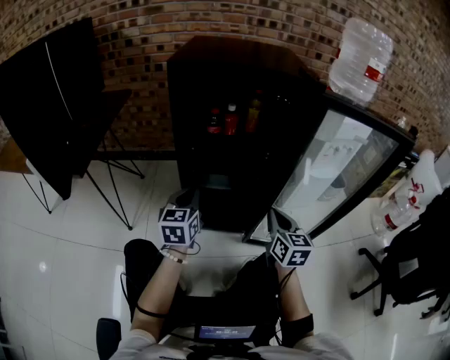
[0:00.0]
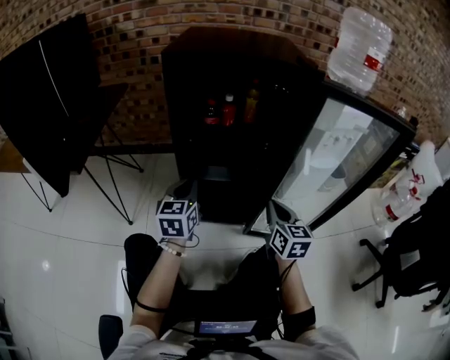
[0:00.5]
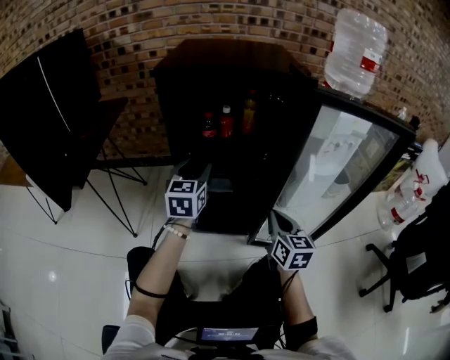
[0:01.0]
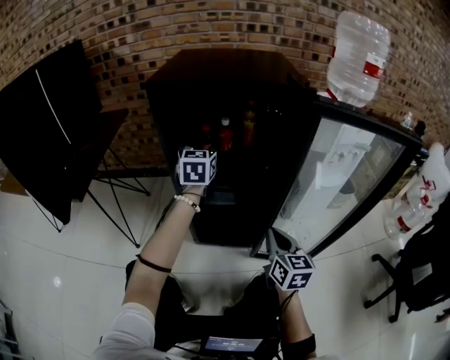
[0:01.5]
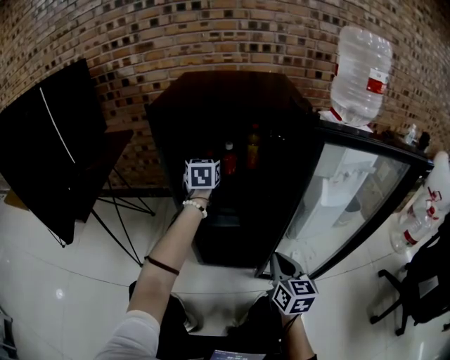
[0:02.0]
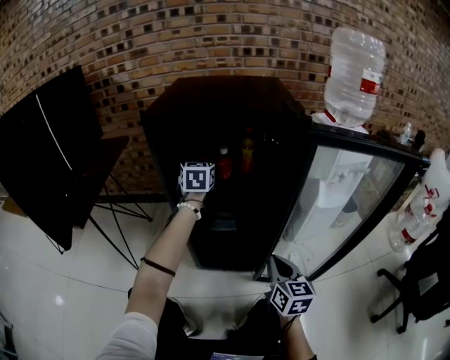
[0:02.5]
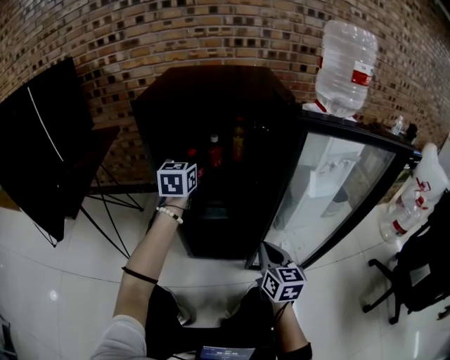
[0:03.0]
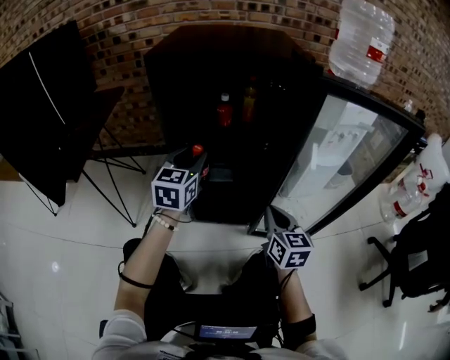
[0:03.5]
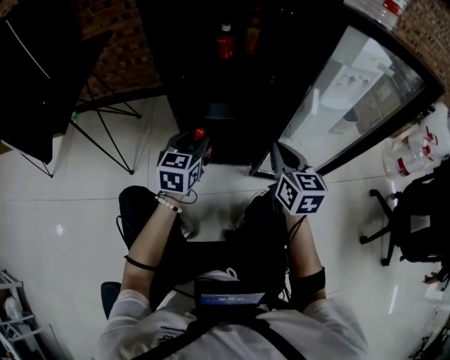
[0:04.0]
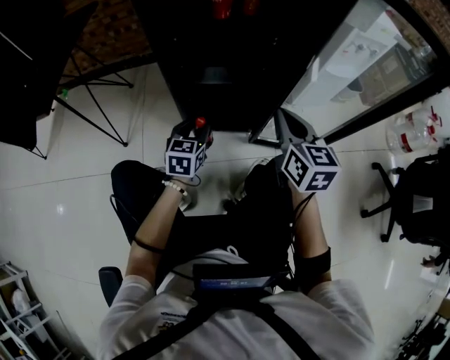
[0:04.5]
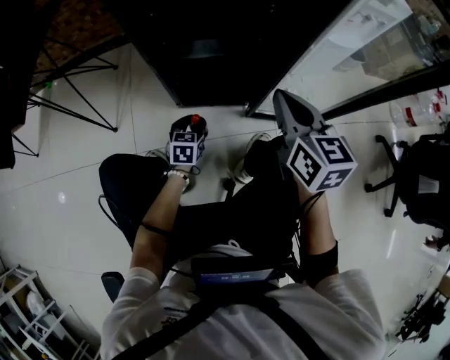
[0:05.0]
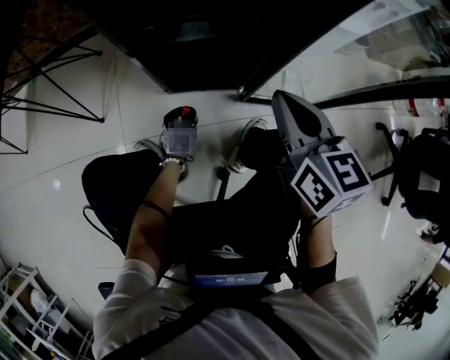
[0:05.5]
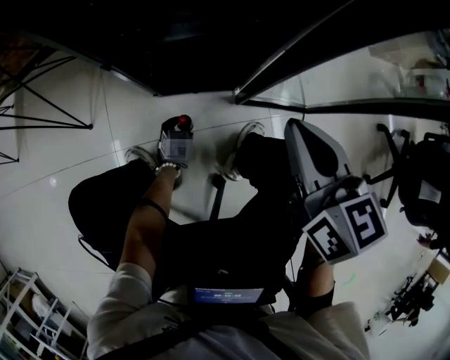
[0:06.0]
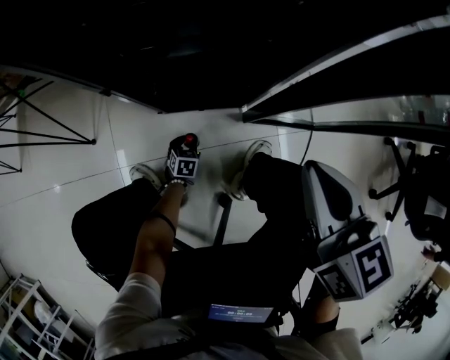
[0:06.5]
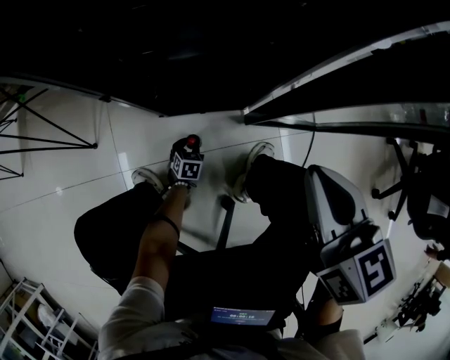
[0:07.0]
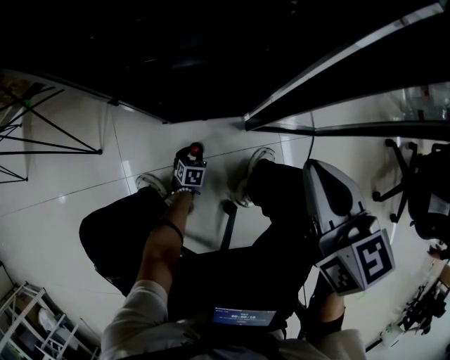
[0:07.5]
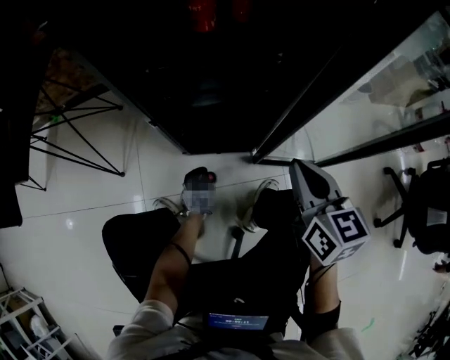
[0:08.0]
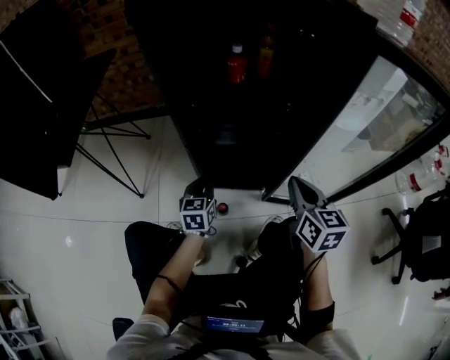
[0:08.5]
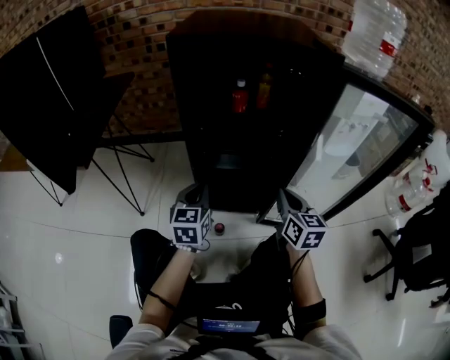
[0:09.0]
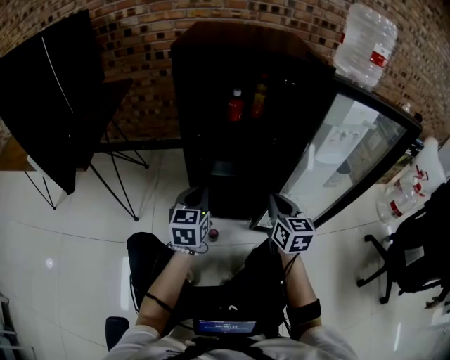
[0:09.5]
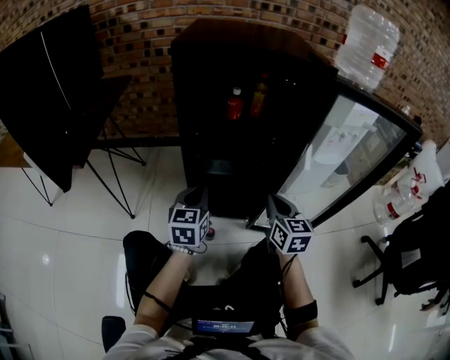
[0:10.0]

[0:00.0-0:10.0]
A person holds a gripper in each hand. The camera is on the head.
0:00.0 to 0:02.0: The left gripper goes roughly 30 cm forward, and opens its fingers.
0:02.0 to 0:04.0: The left gripper heads backward and downward, covering roughly 30 cm, and closes its fingers.
0:04.0 to 0:06.0: The left gripper moves downward, roughly 50 cm, and points its fingers about 40 degrees further downward, while the right gripper ends up approximately 5 cm from where it was.
0:06.0 to 0:08.0: The left gripper goes about 10 cm upward, and closes.
0:08.0 to 0:10.0: The right gripper shifts by approximately 5 cm. The left gripper shifts roughly 40 cm upward, and points its fingers roughly 30 degrees further upward.

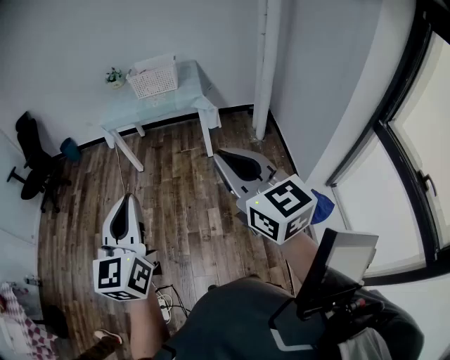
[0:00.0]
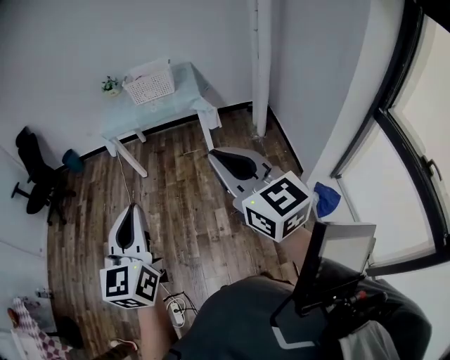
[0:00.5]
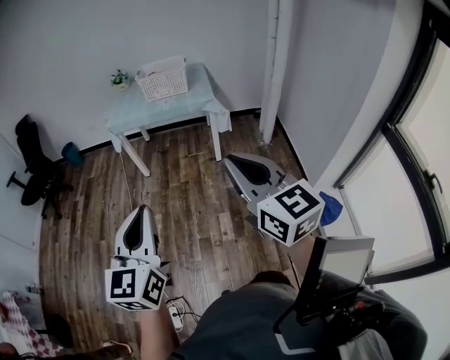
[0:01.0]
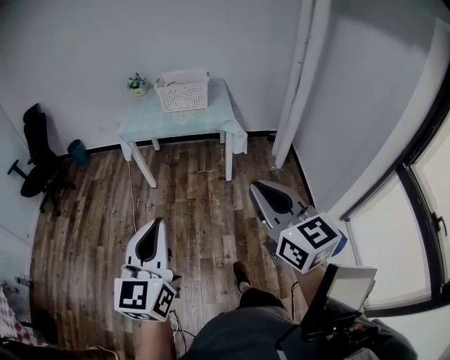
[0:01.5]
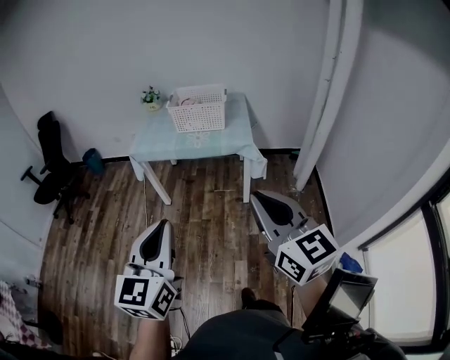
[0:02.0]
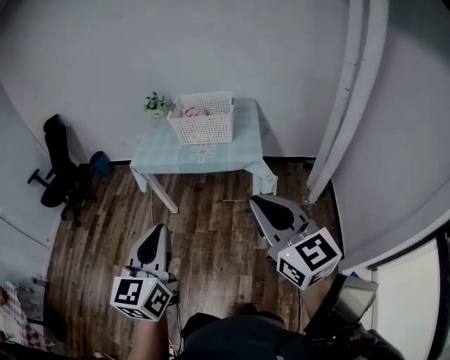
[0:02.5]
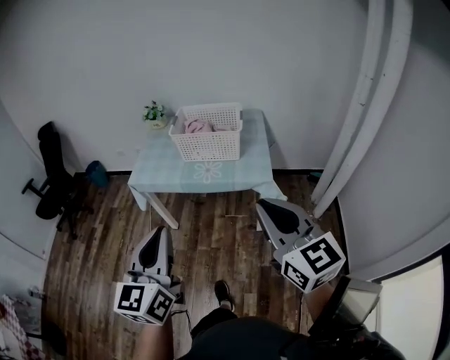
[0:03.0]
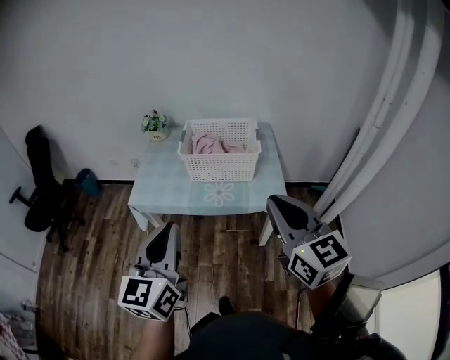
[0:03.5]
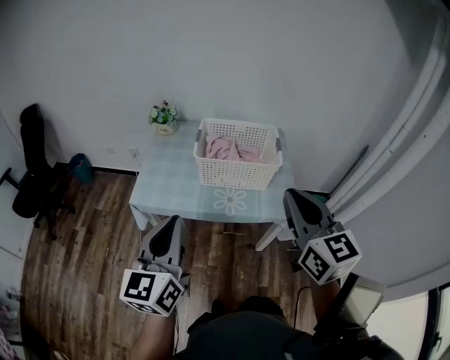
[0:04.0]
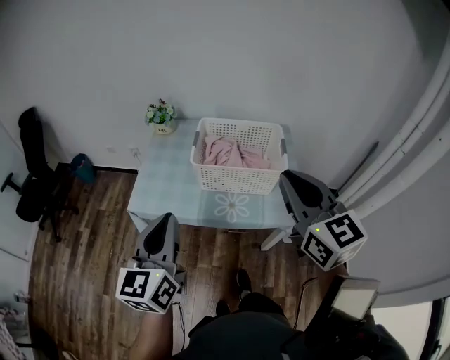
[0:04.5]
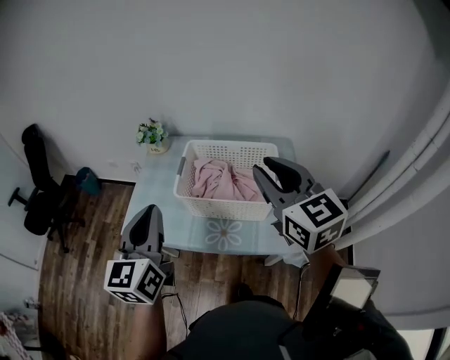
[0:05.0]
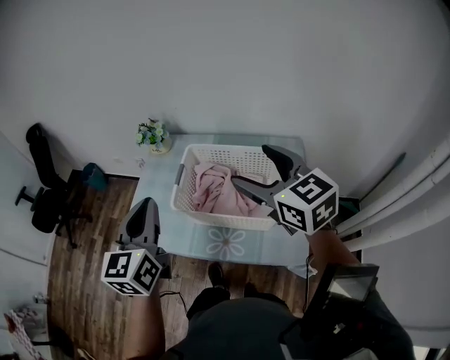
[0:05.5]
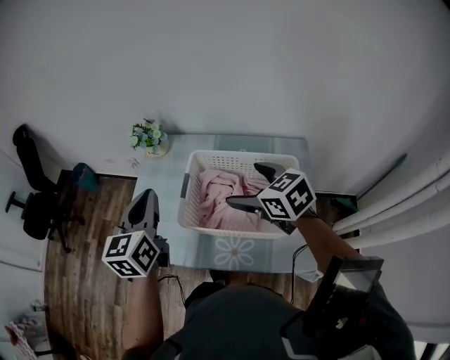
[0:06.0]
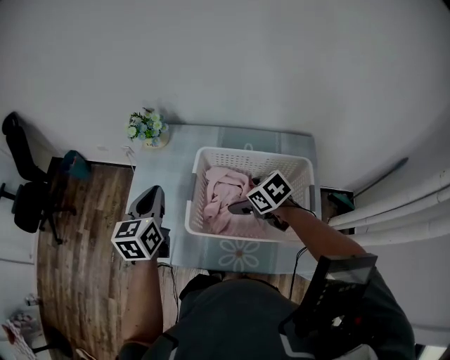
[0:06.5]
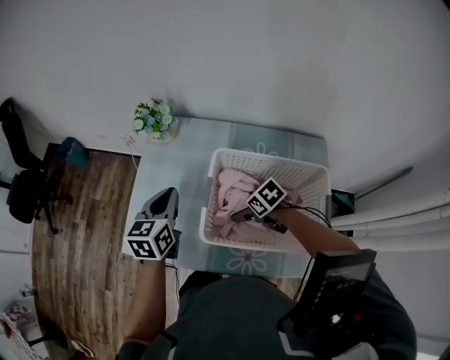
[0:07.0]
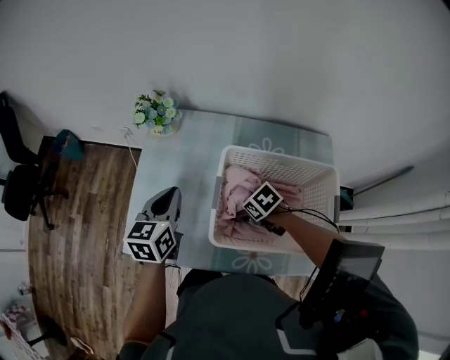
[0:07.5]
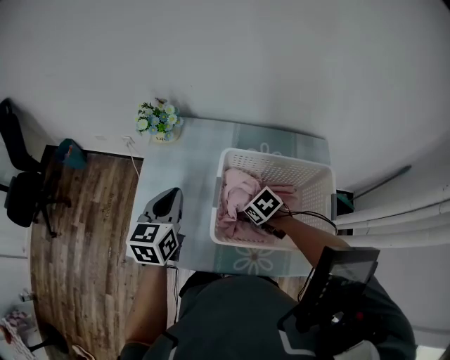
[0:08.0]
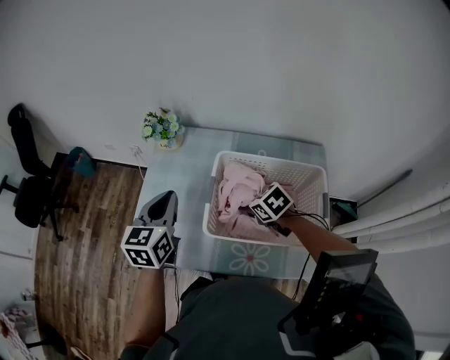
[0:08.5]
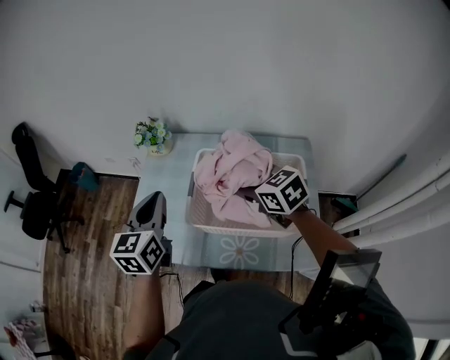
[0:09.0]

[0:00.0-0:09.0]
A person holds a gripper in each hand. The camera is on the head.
0:00.0 to 0:02.0: The grippers both shift forward by about 25 cm.
0:02.0 to 0:04.5: Both grippers are carried forward, about 60 cm.
0:04.5 to 0:07.0: The right gripper moves downward, some 40 cm, tips its fingers downward by approximately 60 degrees, and opens its fingers. Meanwhile the left gripper moves approximately 40 cm, and changes its angle by about 20 degrees.
0:07.0 to 0:09.0: The right gripper goes roughly 25 cm upward, changes its angle by some 40 degrees, and closes up. Meanwhile the left gripper goes approximately 15 cm upward and backward.

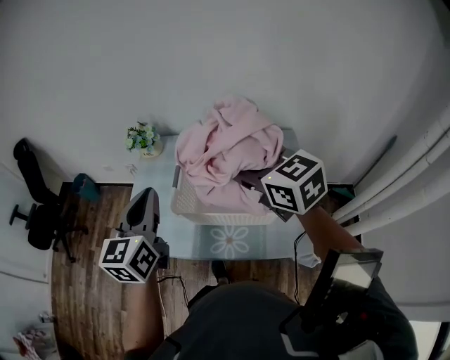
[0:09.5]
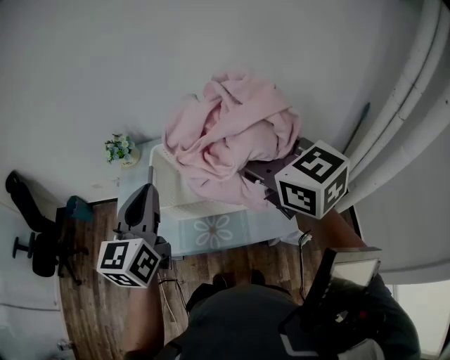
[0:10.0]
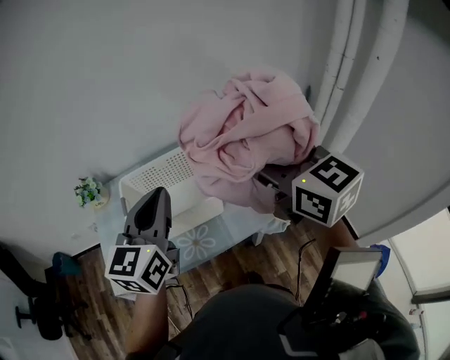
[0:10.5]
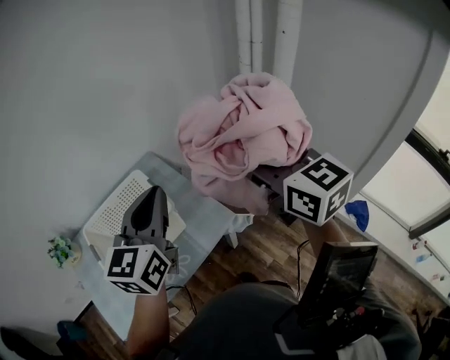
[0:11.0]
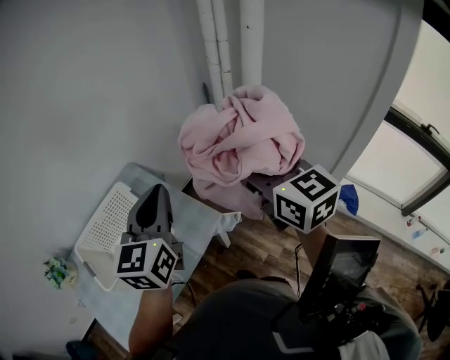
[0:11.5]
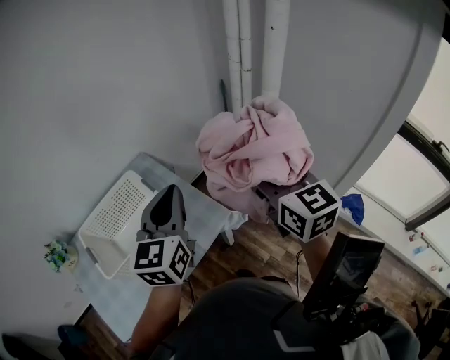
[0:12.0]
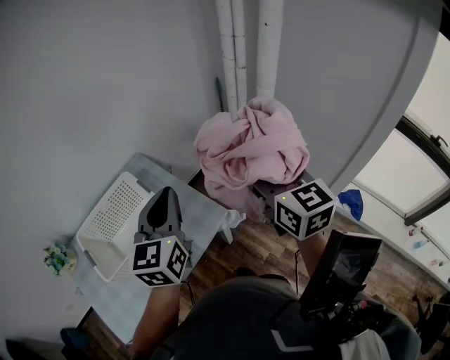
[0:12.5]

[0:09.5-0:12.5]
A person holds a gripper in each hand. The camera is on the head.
0:09.5 to 0:11.0: The left gripper changes place by roughly 35 cm, and rotates roughly 50 degrees; the right gripper shifts by roughly 40 cm, and turns by roughly 60 degrees.
0:11.0 to 0:12.5: The left gripper moves roughly 5 cm, while the right gripper moves downward, about 5 cm.

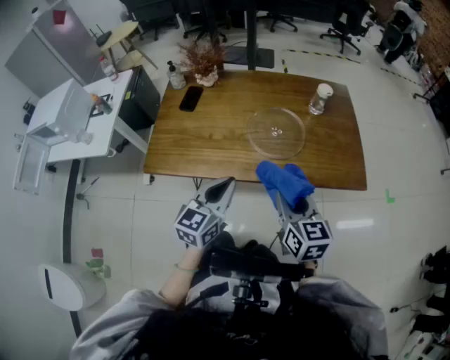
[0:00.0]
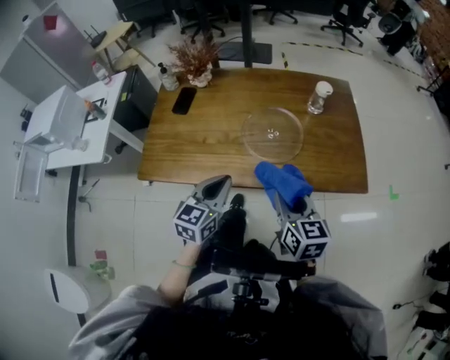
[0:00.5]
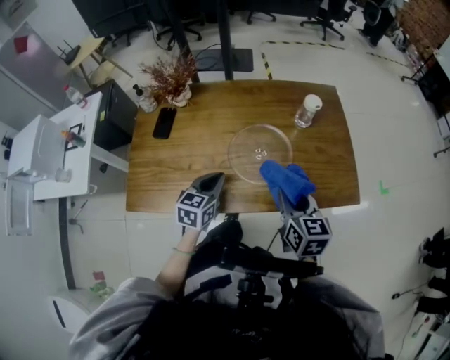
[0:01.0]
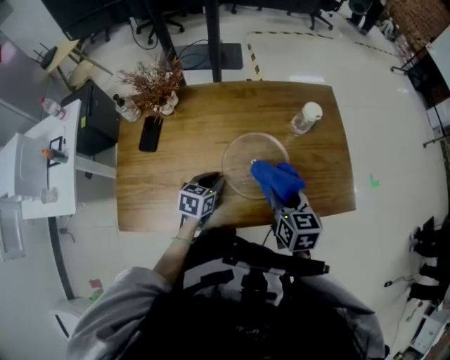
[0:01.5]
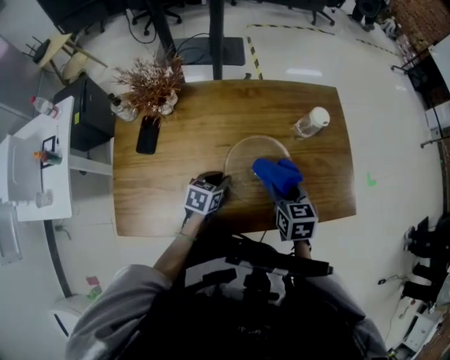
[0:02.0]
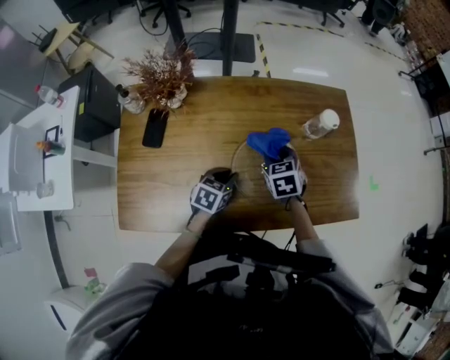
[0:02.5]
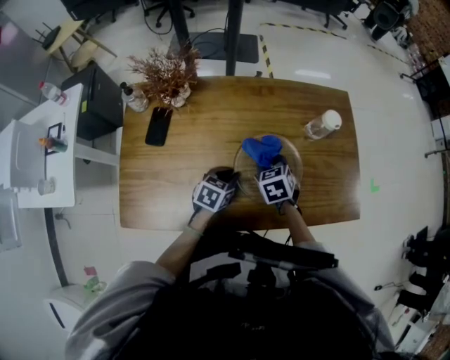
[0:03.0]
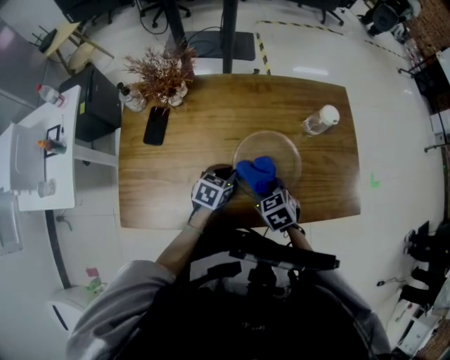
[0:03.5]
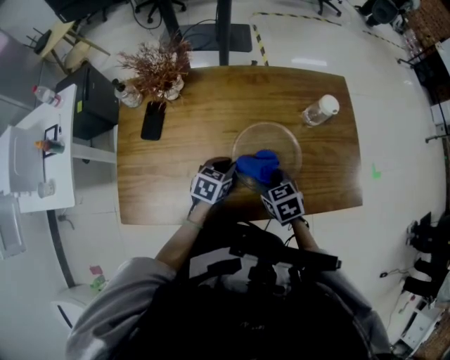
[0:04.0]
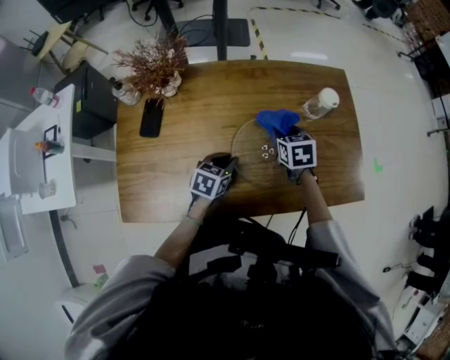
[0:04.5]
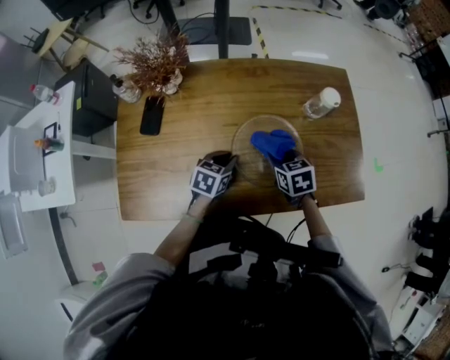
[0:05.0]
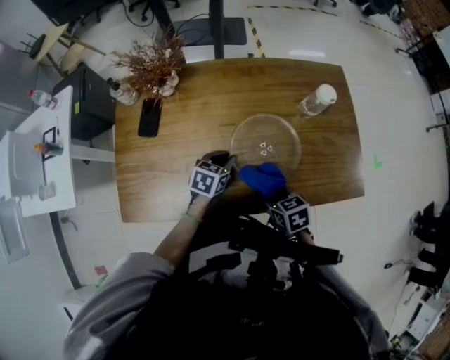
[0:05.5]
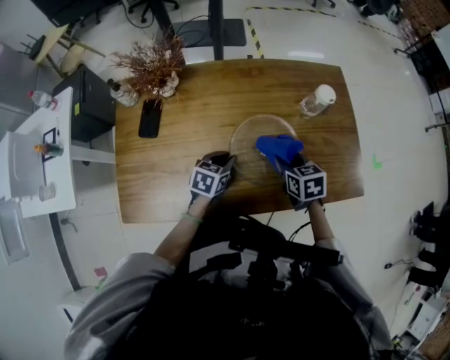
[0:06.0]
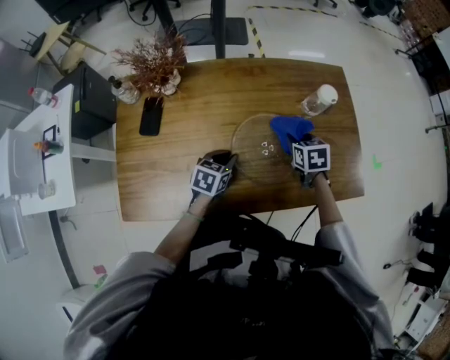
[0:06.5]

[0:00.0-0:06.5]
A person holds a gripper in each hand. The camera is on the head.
0:00.0 to 0:02.0: The left gripper heads forward and downward, covering approximately 35 cm, and tilts its fingers about 30 degrees downward; the right gripper moves forward, about 25 cm, and rotates some 20 degrees.
0:02.0 to 0:04.5: The right gripper goes forward and backward, some 15 cm each way, reversing 2 times.
0:04.5 to 0:06.5: The right gripper heads to the right, covering about 5 cm, and goes backward and returns, approximately 20 cm each way.
